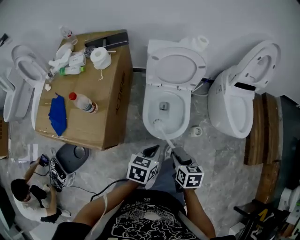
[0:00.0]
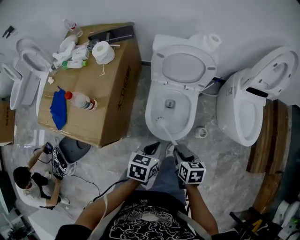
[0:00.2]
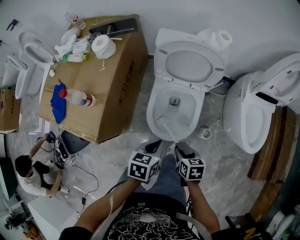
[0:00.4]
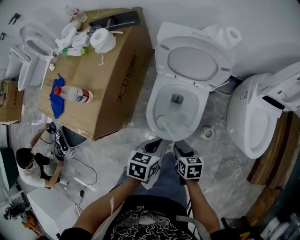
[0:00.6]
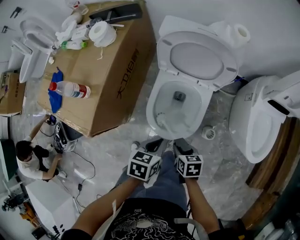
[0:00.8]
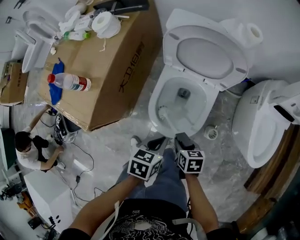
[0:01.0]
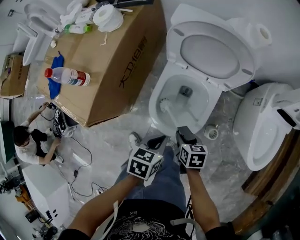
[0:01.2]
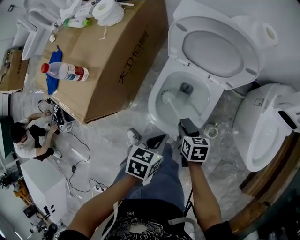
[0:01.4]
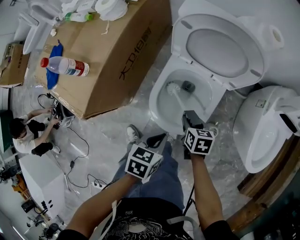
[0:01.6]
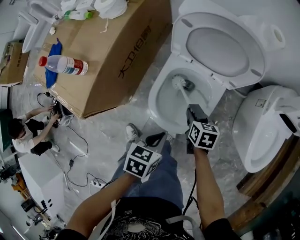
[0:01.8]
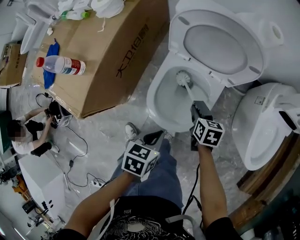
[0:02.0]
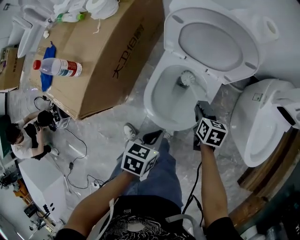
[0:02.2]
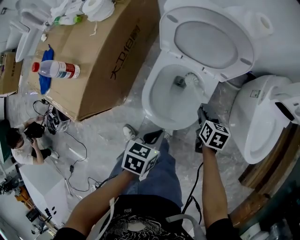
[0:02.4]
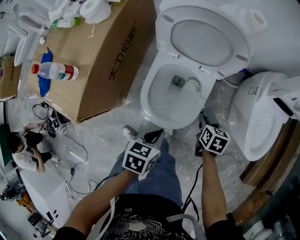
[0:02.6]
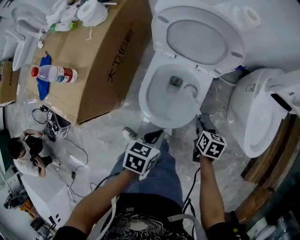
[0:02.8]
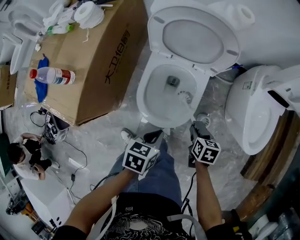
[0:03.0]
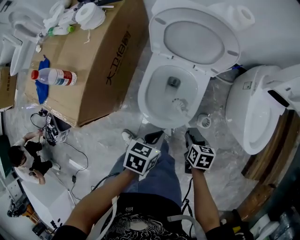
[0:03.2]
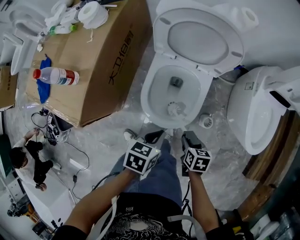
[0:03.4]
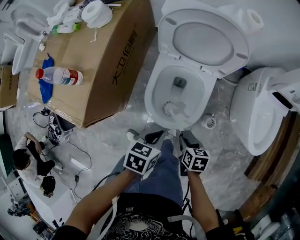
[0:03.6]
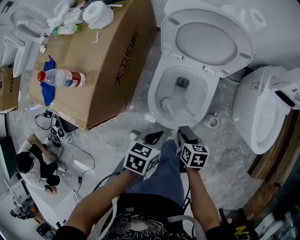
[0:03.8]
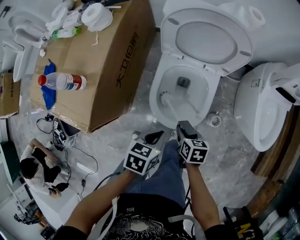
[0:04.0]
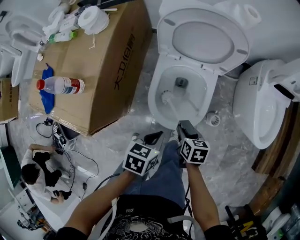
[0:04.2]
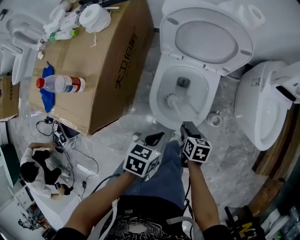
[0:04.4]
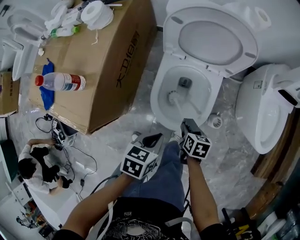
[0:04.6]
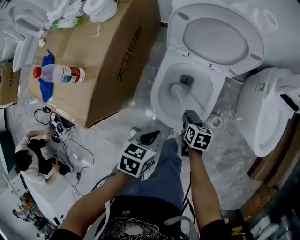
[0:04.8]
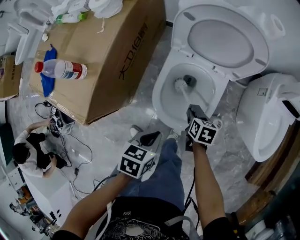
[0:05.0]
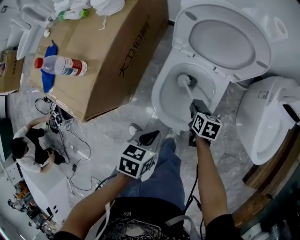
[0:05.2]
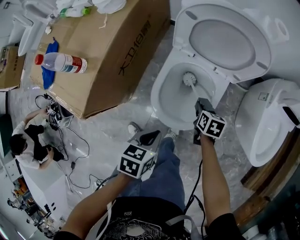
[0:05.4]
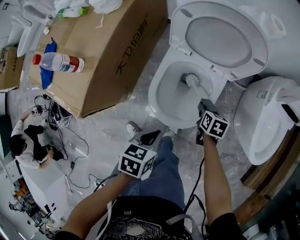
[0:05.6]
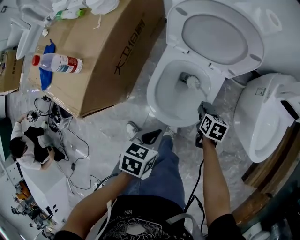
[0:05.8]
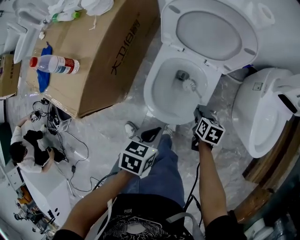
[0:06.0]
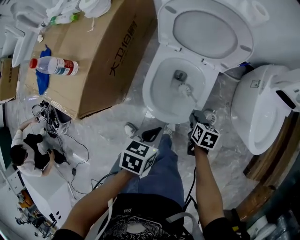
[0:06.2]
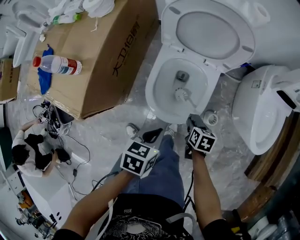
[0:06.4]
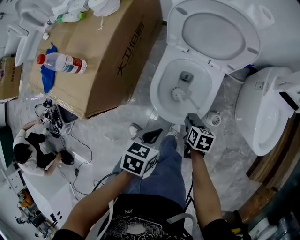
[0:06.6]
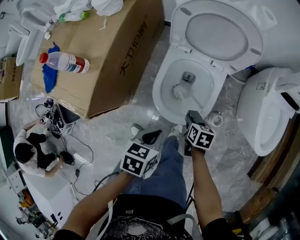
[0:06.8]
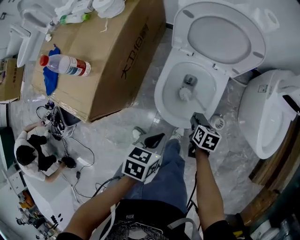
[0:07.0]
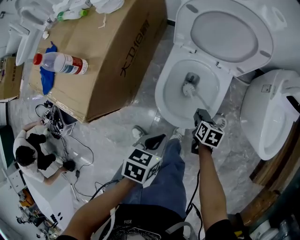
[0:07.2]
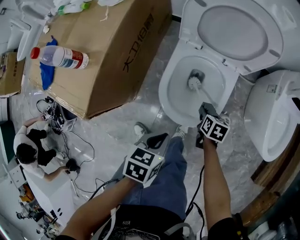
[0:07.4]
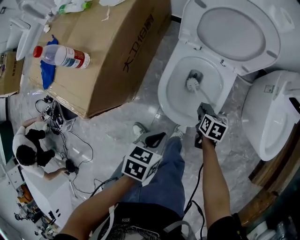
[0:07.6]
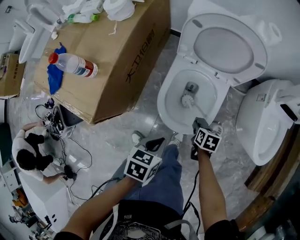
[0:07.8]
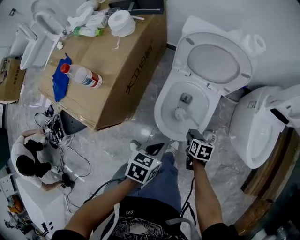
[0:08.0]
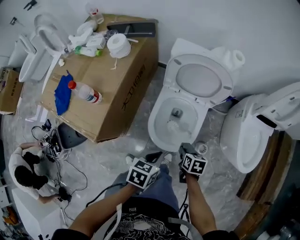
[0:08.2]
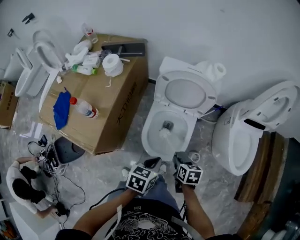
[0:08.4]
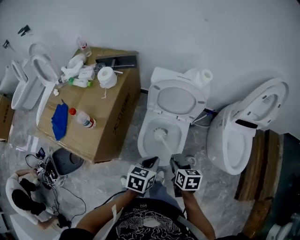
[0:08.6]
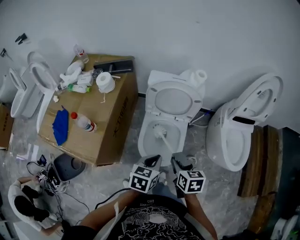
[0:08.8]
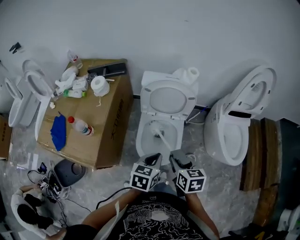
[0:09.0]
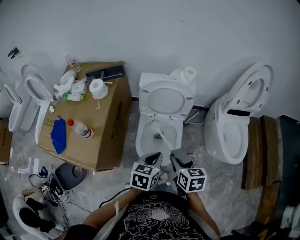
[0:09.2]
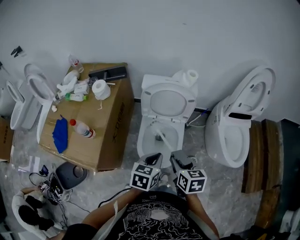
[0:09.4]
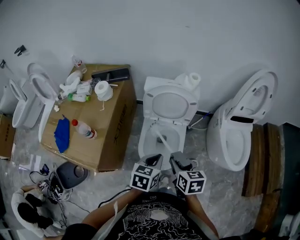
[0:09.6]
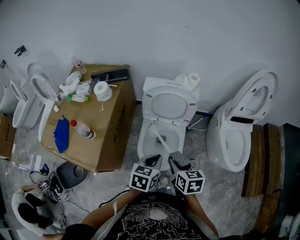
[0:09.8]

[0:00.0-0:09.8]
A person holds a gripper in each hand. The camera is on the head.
0:00.0 to 0:01.4: The two grippers go some 15 cm downward. The right gripper rotates approximately 30 degrees. Meanwhile the left gripper swivels approximately 20 degrees.
0:01.4 to 0:02.8: The right gripper is displaced to the right by roughly 15 cm.
0:02.8 to 0:04.2: The left gripper heads to the left, covering approximately 5 cm; the right gripper shifts roughly 15 cm to the left and backward.
0:04.2 to 0:05.6: The right gripper goes roughly 15 cm forward, to the right and downward.
0:05.6 to 0:07.0: The right gripper shifts roughly 10 cm backward.
0:07.0 to 0:08.4: The right gripper shifts about 15 cm upward, while the left gripper moves upward, approximately 10 cm.
0:08.4 to 0:09.8: The right gripper is displaced upward by some 15 cm. The left gripper moves upward, approximately 5 cm.

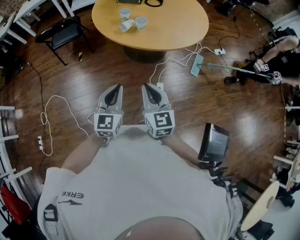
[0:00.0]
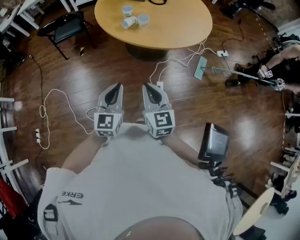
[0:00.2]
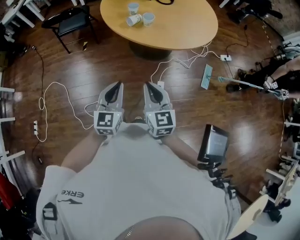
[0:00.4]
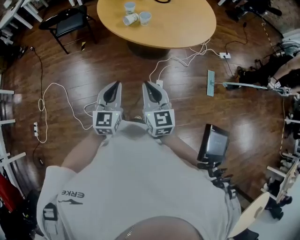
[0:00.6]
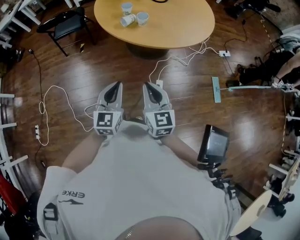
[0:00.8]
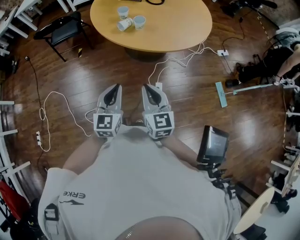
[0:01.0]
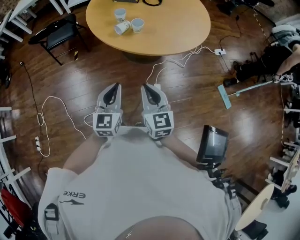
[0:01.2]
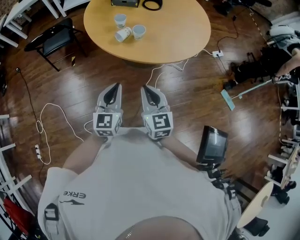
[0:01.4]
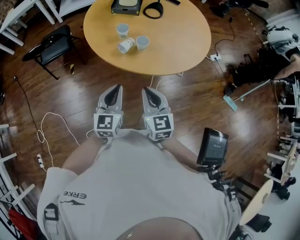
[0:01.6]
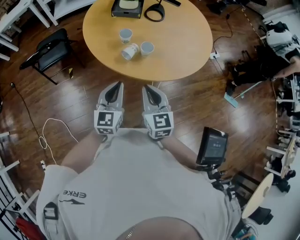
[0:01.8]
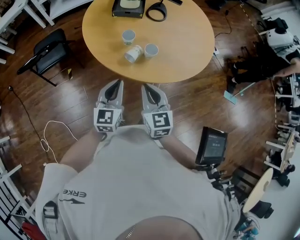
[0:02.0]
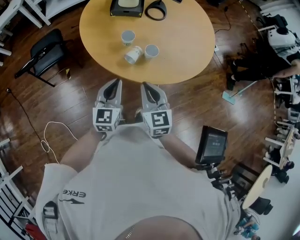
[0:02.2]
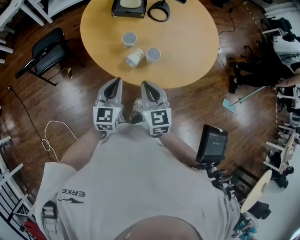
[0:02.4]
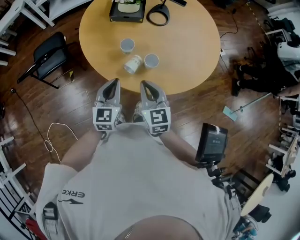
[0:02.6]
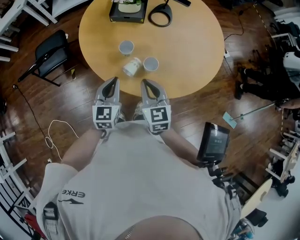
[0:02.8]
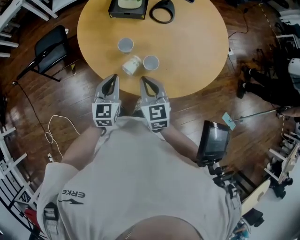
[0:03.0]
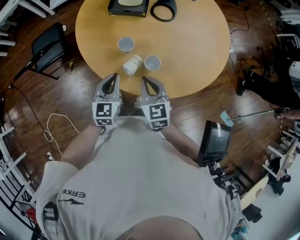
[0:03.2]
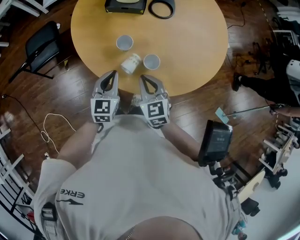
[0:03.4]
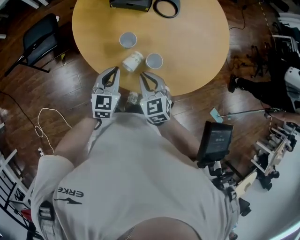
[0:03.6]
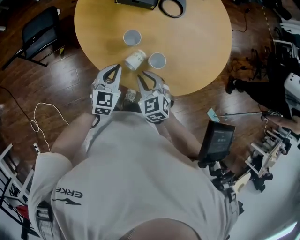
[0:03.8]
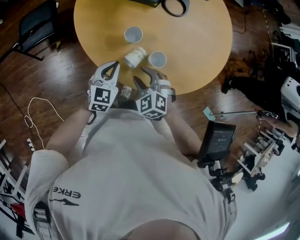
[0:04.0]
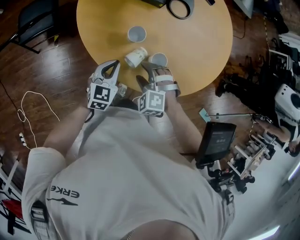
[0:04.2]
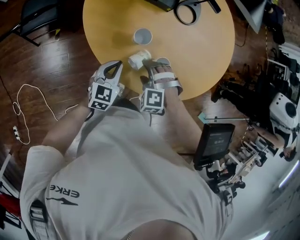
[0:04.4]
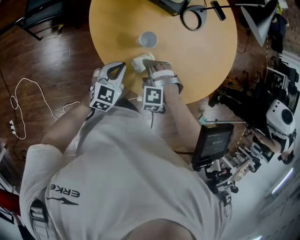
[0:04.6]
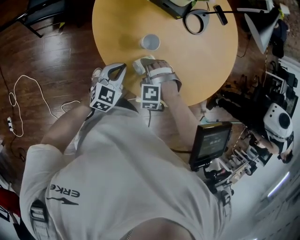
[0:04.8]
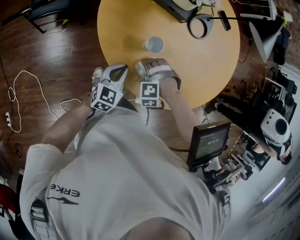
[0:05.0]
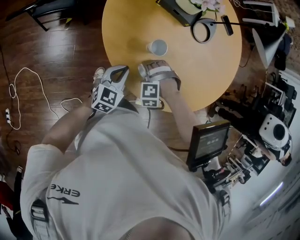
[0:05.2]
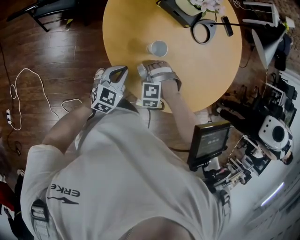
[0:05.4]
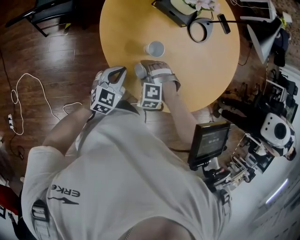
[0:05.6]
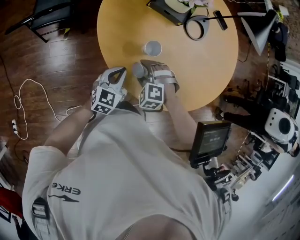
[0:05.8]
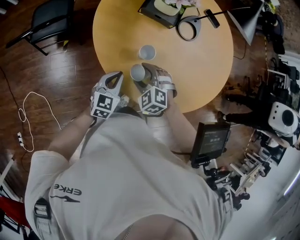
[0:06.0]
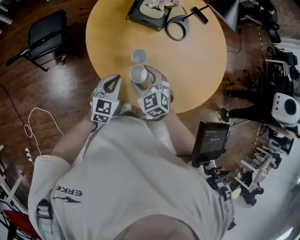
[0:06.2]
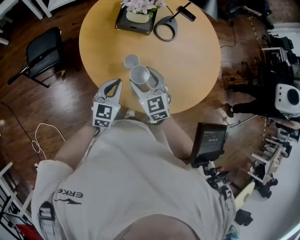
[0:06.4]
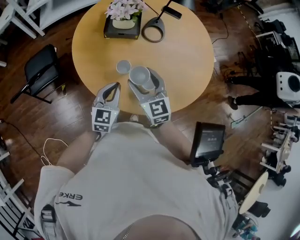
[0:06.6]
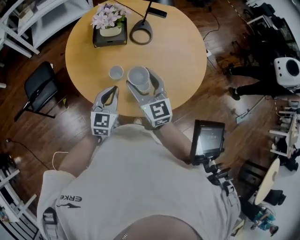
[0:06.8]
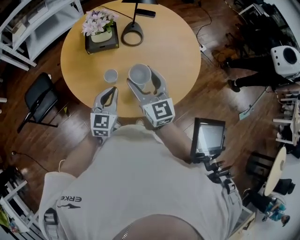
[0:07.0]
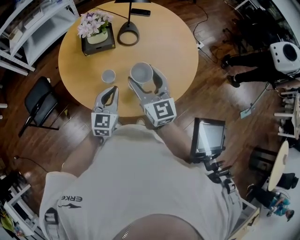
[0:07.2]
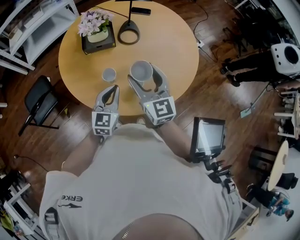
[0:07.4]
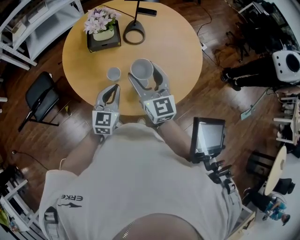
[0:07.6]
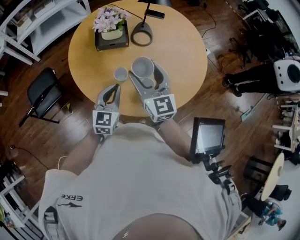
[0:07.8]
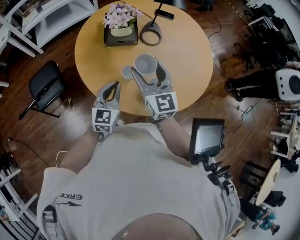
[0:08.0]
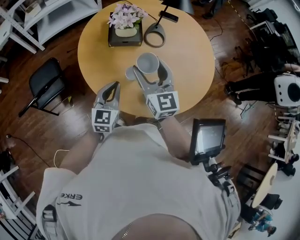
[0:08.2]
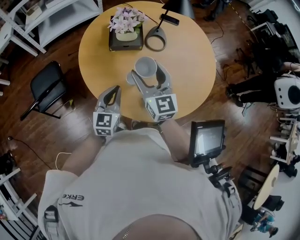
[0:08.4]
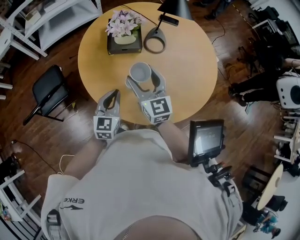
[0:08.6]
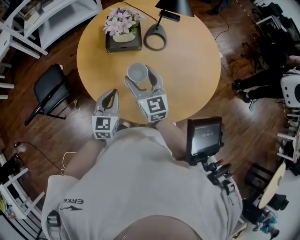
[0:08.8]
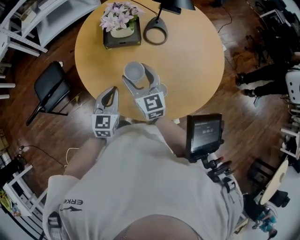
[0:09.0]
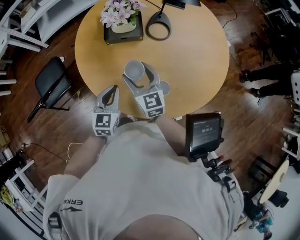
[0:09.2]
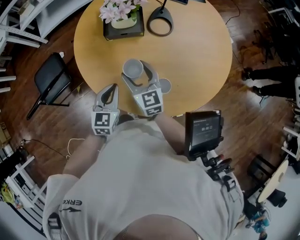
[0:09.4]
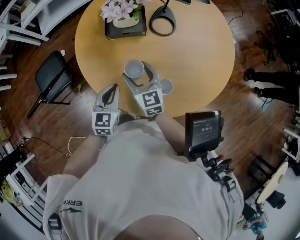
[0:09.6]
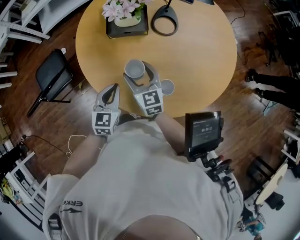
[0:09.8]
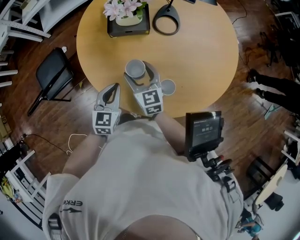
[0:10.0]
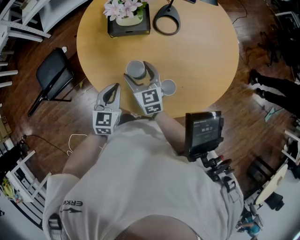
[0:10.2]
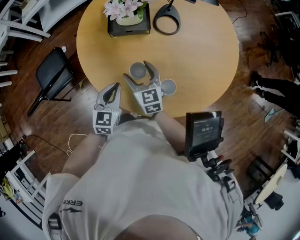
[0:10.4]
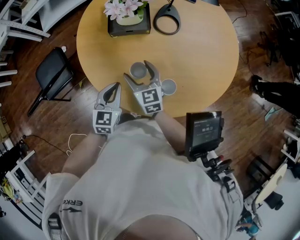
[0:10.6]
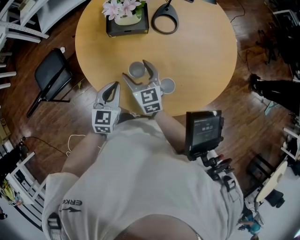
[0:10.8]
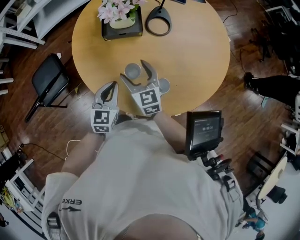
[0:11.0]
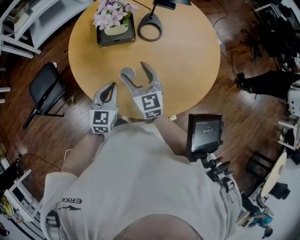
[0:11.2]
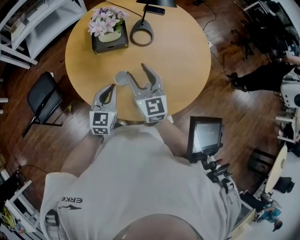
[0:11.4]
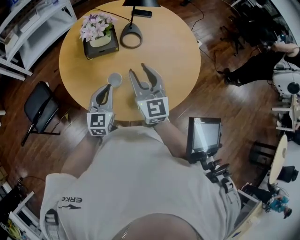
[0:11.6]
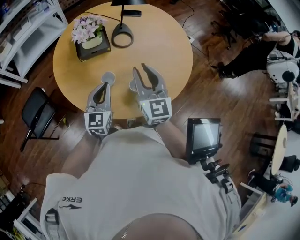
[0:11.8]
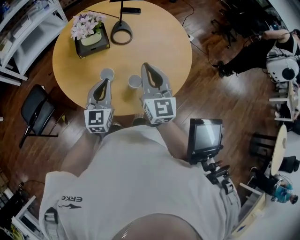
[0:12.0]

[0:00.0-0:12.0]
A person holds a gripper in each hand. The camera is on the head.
0:00.0 to 0:01.6: The grippers both shift forward by about 20 cm.
0:01.6 to 0:03.0: The grippers both shift forward by about 20 cm.
0:03.0 to 0:04.4: Both grippers travel together downward, some 10 cm. The right gripper rolls counterclockwise, seen from behind, by approximately 80 degrees, and opens up.
0:04.4 to 0:06.0: The right gripper reaches some 5 cm downward, then returns, and swivels roughly 30 degrees.
0:06.0 to 0:07.6: The left gripper is displaced upward and to the right by approximately 15 cm, and changes its angle by about 20 degrees. The right gripper goes roughly 25 cm upward and to the right, and tilts its fingers about 50 degrees upward.
0:07.6 to 0:09.0: The left gripper shifts some 10 cm to the left. Meanwhile the right gripper moves to the left, downward and forward, approximately 15 cm.
0:09.0 to 0:10.4: The right gripper moves downward, approximately 10 cm.
0:10.4 to 0:12.0: The left gripper goes some 15 cm upward and to the right, and turns by approximately 20 degrees. Meanwhile the right gripper shifts approximately 30 cm upward, to the right and backward, swivels roughly 30 degrees, and closes its fingers.

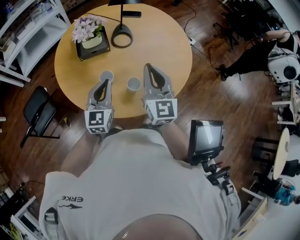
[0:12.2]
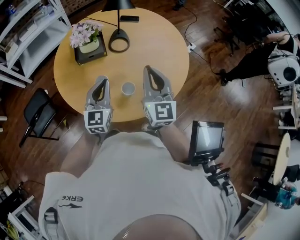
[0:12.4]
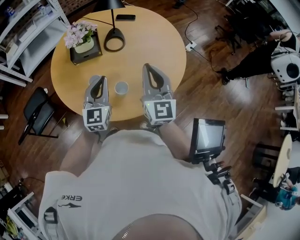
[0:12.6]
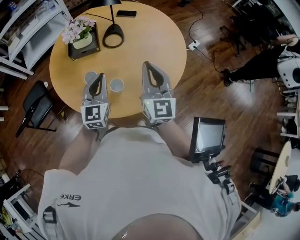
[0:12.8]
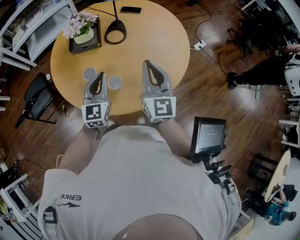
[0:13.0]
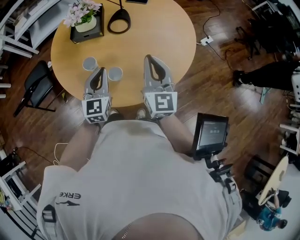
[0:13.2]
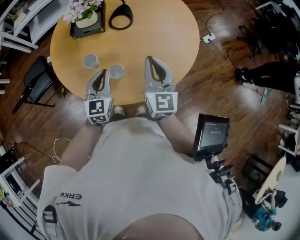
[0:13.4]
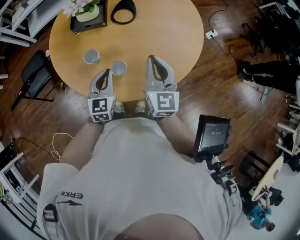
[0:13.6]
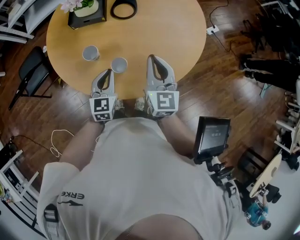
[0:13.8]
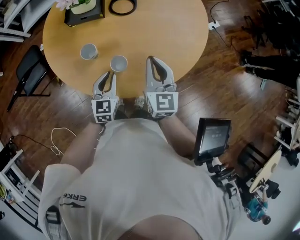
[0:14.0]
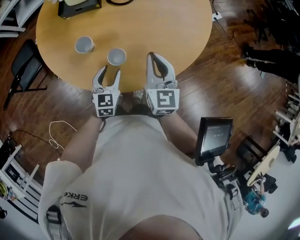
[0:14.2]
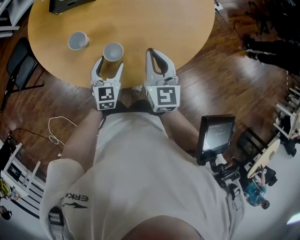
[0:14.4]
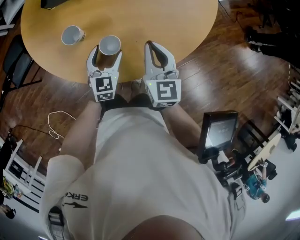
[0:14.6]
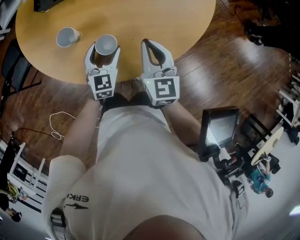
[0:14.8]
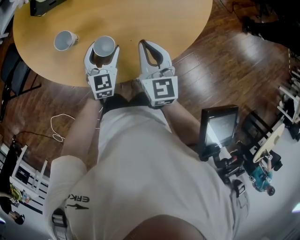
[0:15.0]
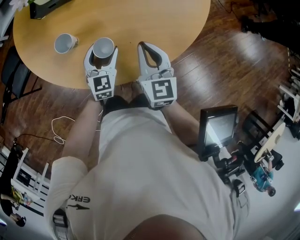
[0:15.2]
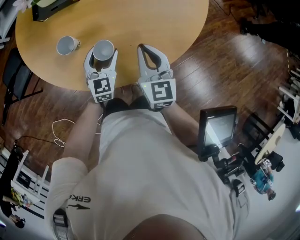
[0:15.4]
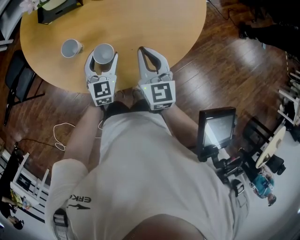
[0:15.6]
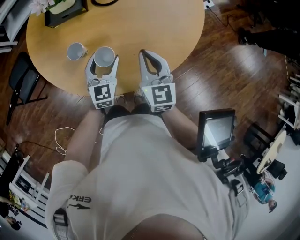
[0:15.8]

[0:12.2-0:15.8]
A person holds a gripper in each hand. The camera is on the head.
0:12.2 to 0:14.0: Both grippers move downward and to the right, some 15 cm. The left gripper swivels roughly 20 degrees.
0:14.0 to 0:15.8: The left gripper travels forward by about 5 cm, and opens.
